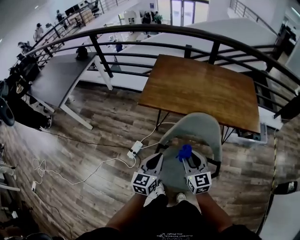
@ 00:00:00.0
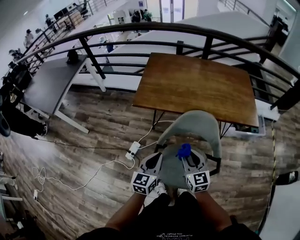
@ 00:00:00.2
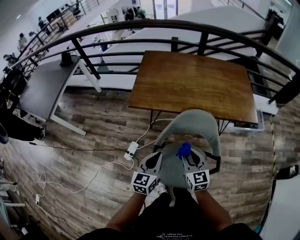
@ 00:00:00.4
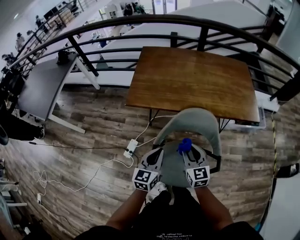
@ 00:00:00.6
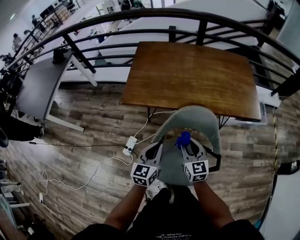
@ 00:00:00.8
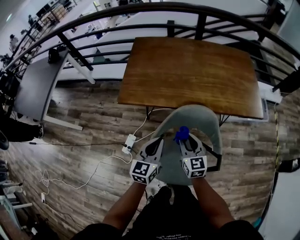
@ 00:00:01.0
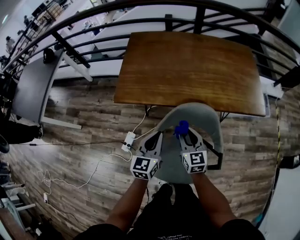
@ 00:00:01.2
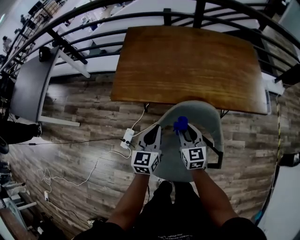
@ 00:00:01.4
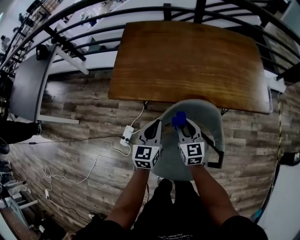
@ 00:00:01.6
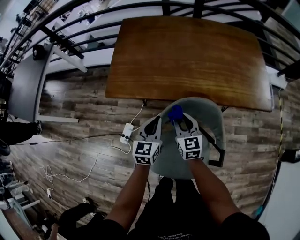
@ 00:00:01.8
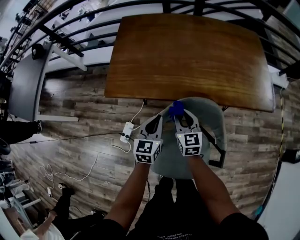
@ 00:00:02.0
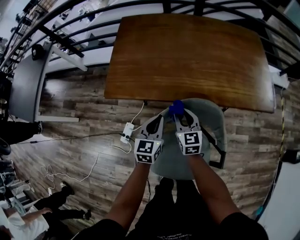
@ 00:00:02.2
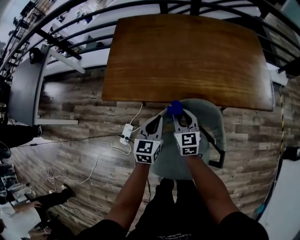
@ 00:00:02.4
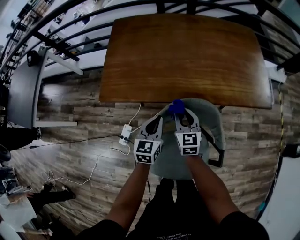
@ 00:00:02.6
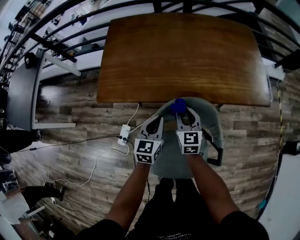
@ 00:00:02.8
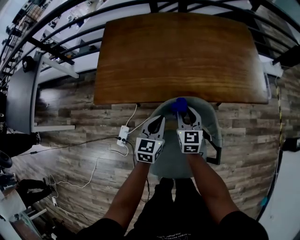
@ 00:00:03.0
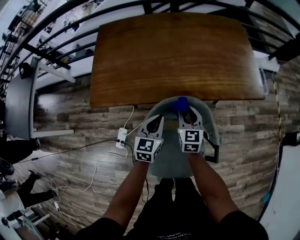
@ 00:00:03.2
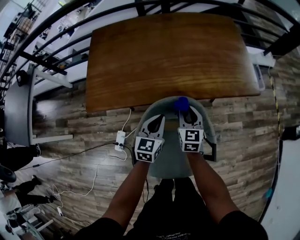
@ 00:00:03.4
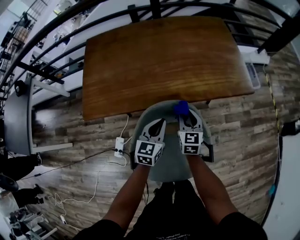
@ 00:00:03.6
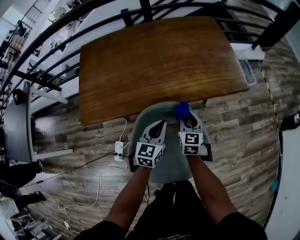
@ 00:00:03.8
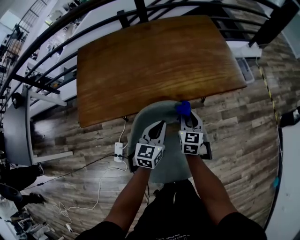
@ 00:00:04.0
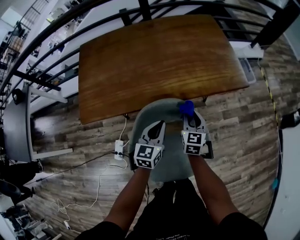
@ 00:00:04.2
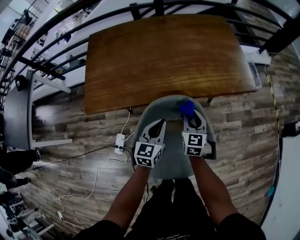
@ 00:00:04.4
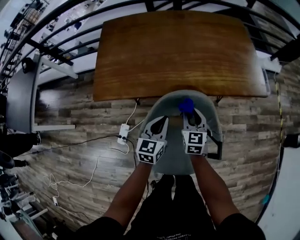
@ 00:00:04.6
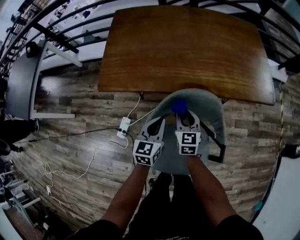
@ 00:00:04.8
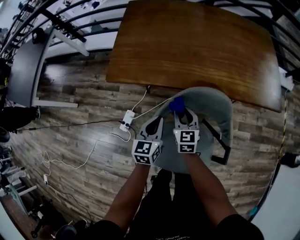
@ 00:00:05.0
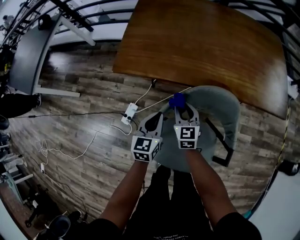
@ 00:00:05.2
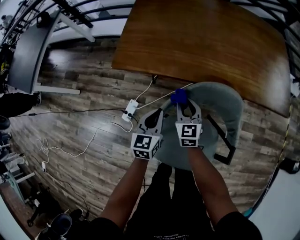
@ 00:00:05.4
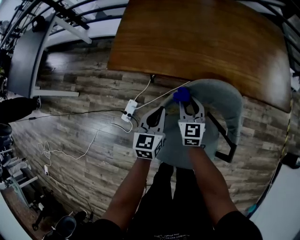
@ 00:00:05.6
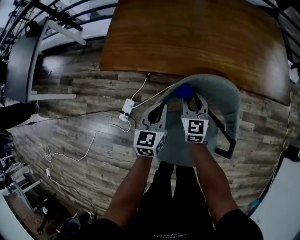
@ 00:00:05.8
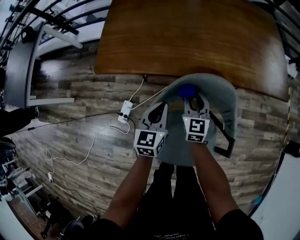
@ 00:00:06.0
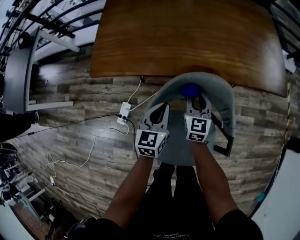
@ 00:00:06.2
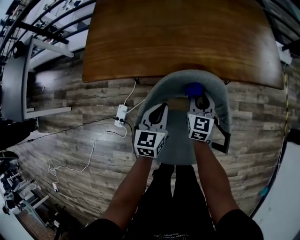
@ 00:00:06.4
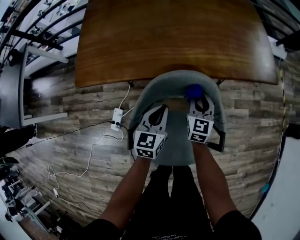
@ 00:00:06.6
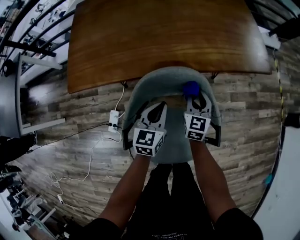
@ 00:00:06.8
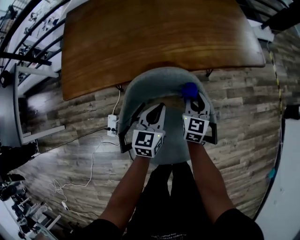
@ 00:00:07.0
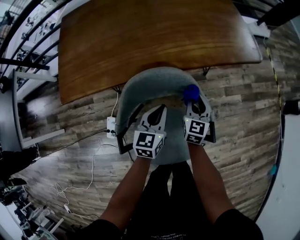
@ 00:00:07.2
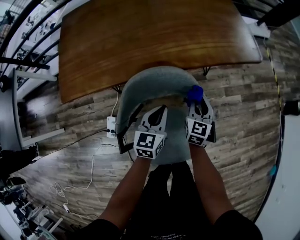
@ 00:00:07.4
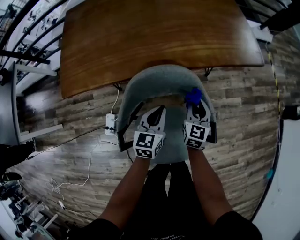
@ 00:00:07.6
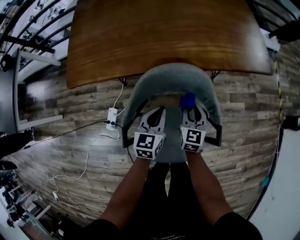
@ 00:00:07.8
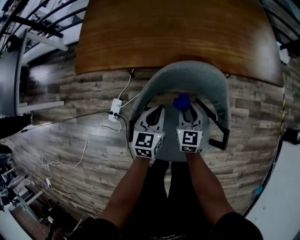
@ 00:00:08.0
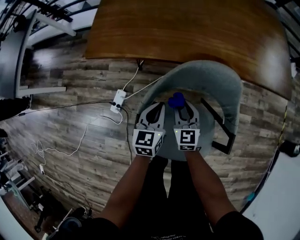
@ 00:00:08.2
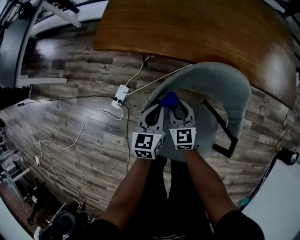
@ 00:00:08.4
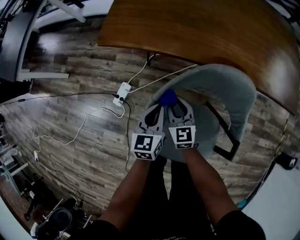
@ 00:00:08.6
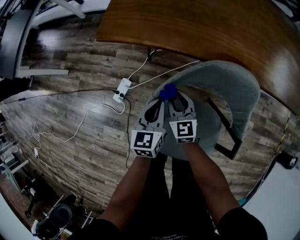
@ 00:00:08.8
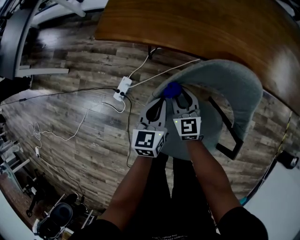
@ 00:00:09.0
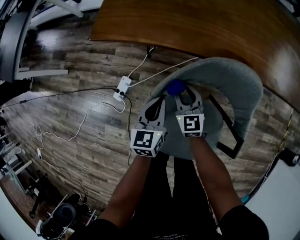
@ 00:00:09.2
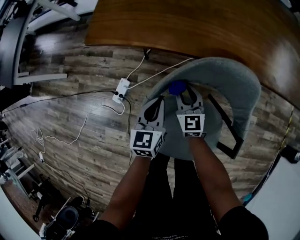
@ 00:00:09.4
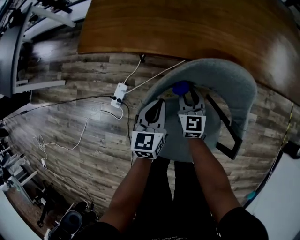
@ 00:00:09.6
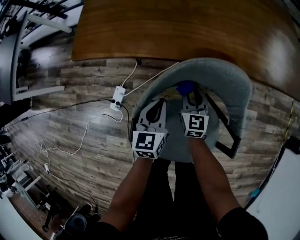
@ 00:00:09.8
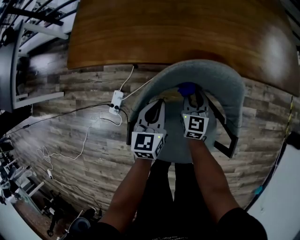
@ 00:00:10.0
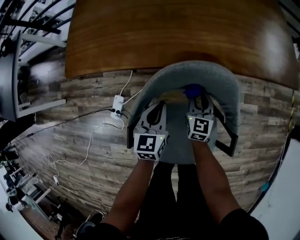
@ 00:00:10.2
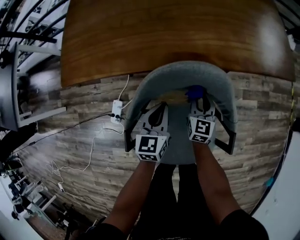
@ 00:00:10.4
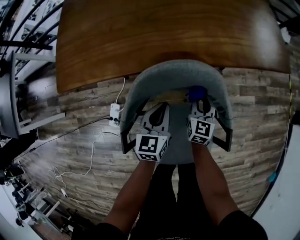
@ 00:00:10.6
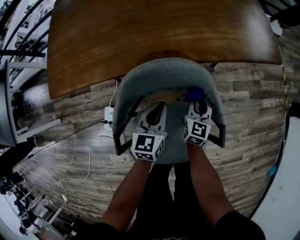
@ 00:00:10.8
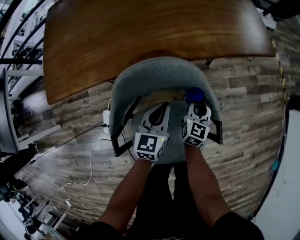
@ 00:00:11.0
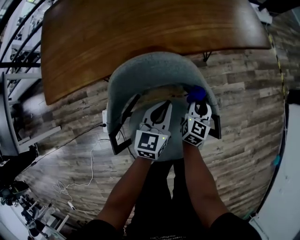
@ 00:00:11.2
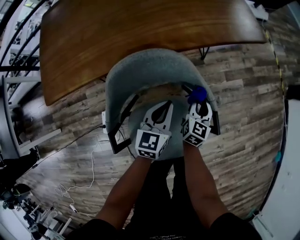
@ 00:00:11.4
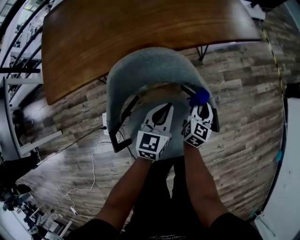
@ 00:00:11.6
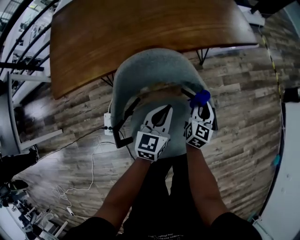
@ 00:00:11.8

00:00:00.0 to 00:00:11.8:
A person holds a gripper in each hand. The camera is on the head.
00:00:00.0 to 00:00:01.4: The left gripper heads forward, covering about 20 cm, while the right gripper shifts approximately 20 cm forward and downward.
00:00:01.4 to 00:00:03.0: The right gripper heads forward and to the right, covering roughly 10 cm; the left gripper moves downward, to the right and forward, about 10 cm.
00:00:03.0 to 00:00:04.4: The right gripper is displaced to the right by roughly 10 cm. The left gripper is displaced to the right by roughly 5 cm.
00:00:04.4 to 00:00:06.0: The left gripper ends up approximately 15 cm from where it was.
00:00:06.0 to 00:00:07.4: Both grippers travel together to the right, some 20 cm. The right gripper swivels approximately 30 degrees.
00:00:07.4 to 00:00:08.8: The right gripper changes place by about 35 cm, and rotates approximately 50 degrees, while the left gripper ends up roughly 25 cm from where it was, and swivels about 30 degrees.
00:00:08.8 to 00:00:10.4: The right gripper shifts by about 25 cm, and turns by approximately 40 degrees. Meanwhile the left gripper ends up approximately 15 cm from where it was.
00:00:10.4 to 00:00:11.8: The left gripper ends up some 15 cm from where it was, and changes its angle by roughly 20 degrees, while the right gripper changes place by some 20 cm, and turns by roughly 30 degrees.

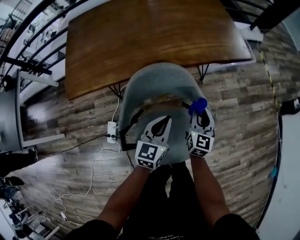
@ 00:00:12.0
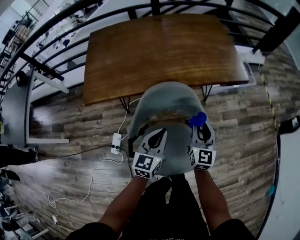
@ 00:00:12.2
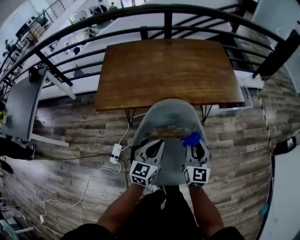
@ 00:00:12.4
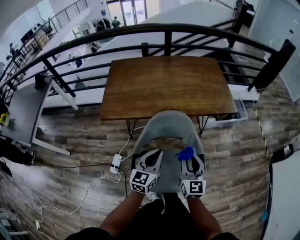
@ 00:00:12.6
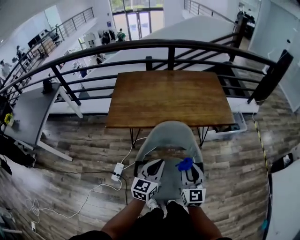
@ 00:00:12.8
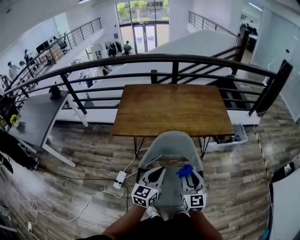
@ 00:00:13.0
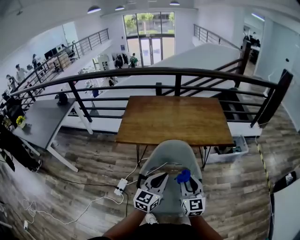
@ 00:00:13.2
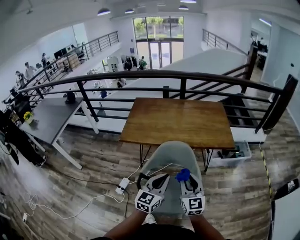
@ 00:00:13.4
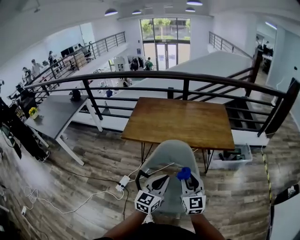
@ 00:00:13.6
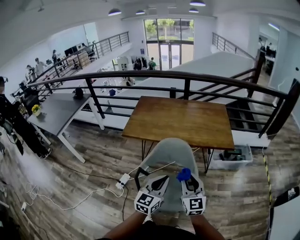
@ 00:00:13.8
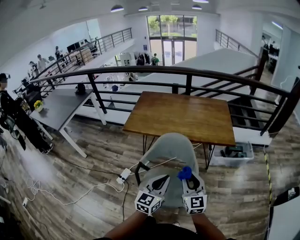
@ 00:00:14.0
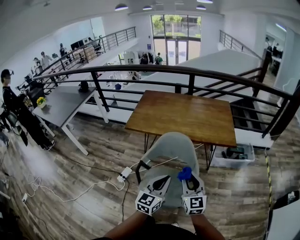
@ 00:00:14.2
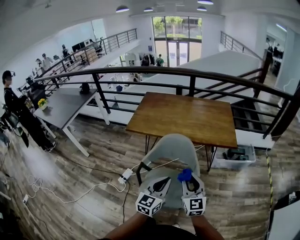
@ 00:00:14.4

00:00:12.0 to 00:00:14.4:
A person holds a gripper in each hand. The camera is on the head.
00:00:12.0 to 00:00:13.2: Both grippers travel together upward and backward, about 30 cm. The right gripper rotates roughly 40 degrees.
00:00:13.2 to 00:00:14.4: The left gripper moves backward and to the right, some 10 cm; the right gripper heads to the right and backward, covering roughly 10 cm.

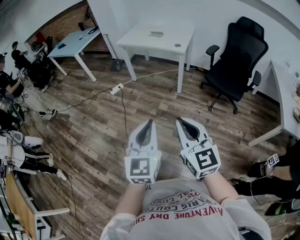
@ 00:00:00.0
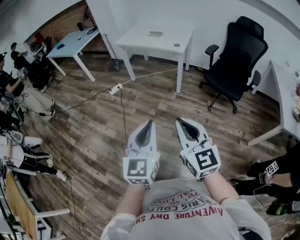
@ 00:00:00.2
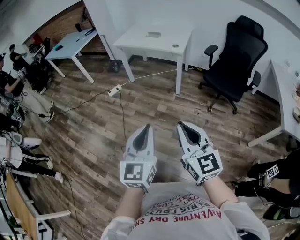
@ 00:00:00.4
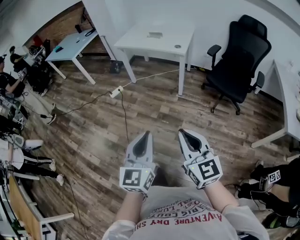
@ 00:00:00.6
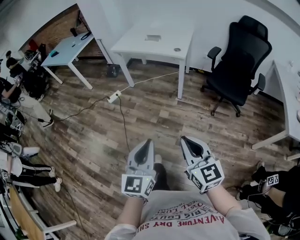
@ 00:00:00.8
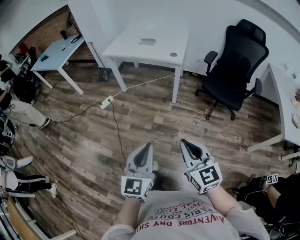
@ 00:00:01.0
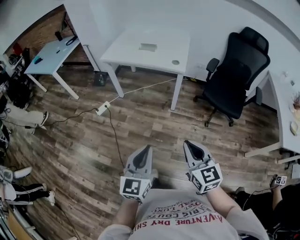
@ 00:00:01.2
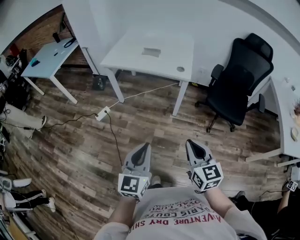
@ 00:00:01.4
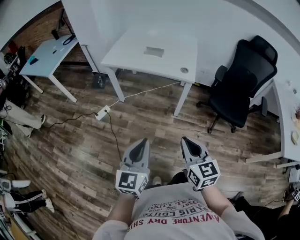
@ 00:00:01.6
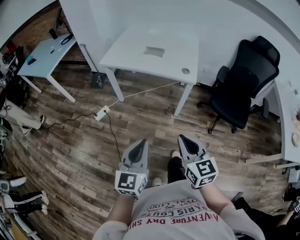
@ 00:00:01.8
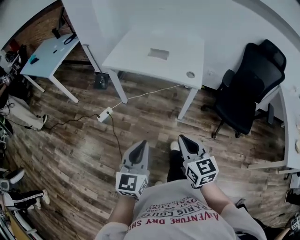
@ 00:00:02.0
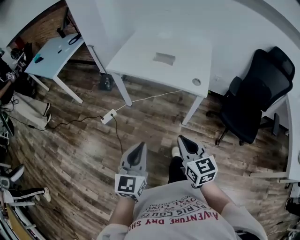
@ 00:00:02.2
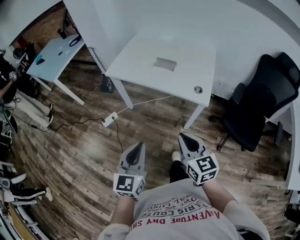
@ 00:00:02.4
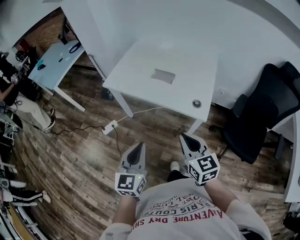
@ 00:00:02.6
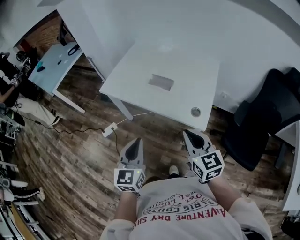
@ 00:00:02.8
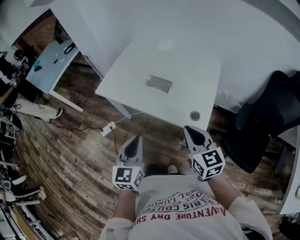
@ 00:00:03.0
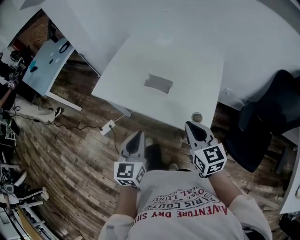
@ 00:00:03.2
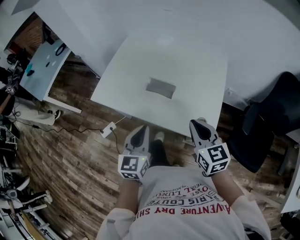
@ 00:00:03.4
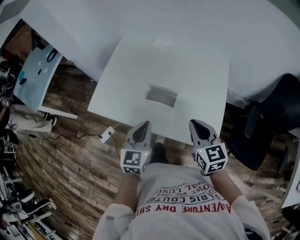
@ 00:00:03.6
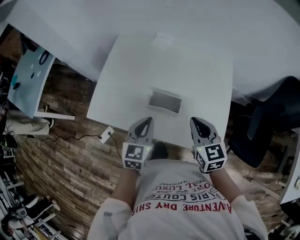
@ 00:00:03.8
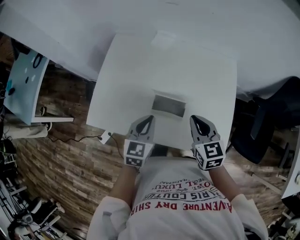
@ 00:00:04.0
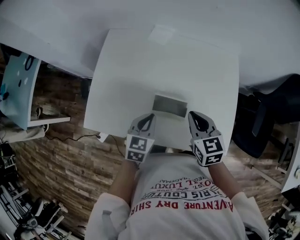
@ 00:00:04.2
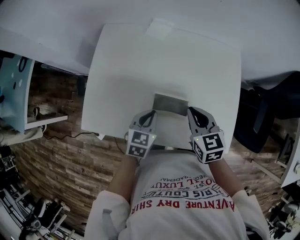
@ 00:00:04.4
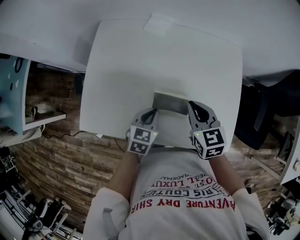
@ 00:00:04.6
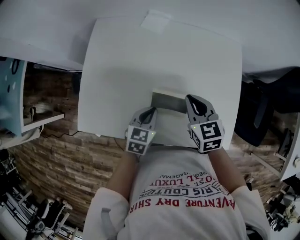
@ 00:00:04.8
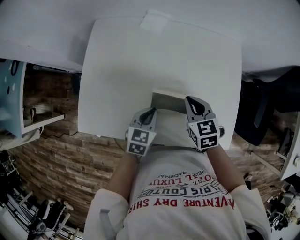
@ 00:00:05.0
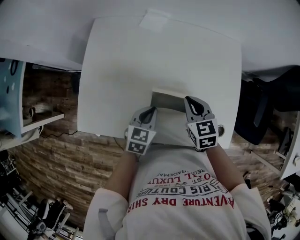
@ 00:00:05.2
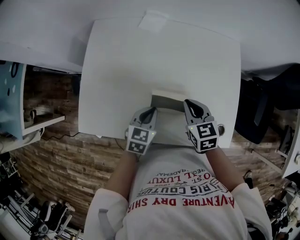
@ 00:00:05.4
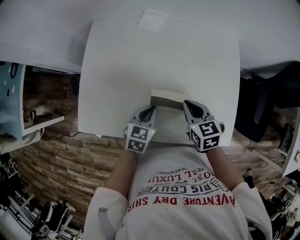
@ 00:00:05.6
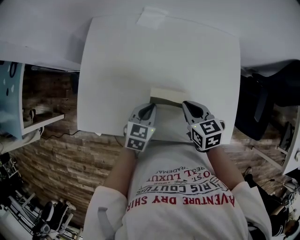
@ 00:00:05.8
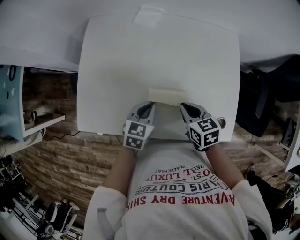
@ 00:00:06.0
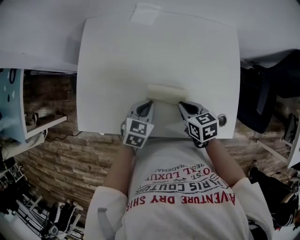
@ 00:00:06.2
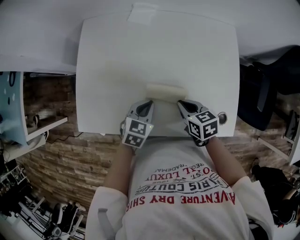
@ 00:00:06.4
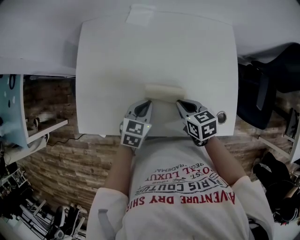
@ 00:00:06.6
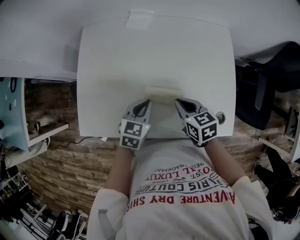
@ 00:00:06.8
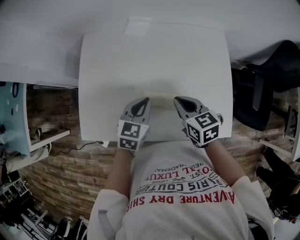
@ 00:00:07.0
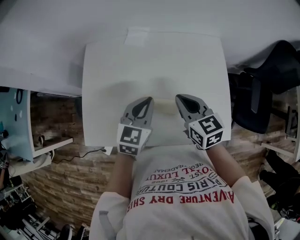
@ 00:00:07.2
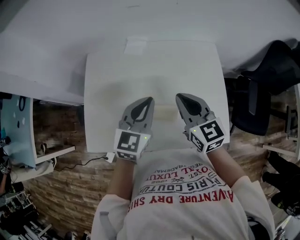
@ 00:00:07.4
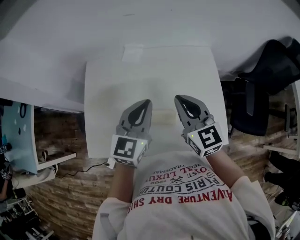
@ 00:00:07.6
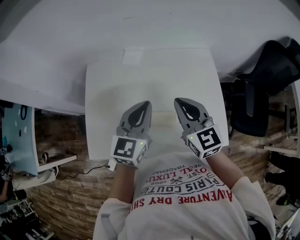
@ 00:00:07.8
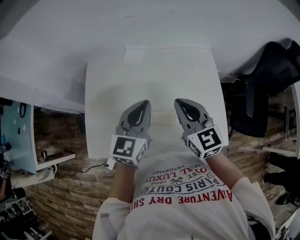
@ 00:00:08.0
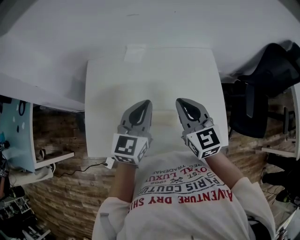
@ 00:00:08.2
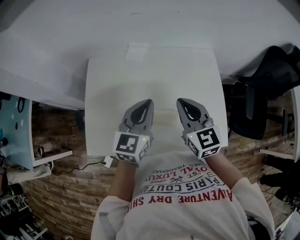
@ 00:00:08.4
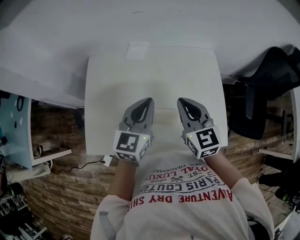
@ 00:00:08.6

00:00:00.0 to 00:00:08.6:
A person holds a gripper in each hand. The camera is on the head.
00:00:00.0 to 00:00:01.4: The grippers both shift forward by about 35 cm. The right gripper changes its angle by roughly 20 degrees.
00:00:01.4 to 00:00:02.8: Both grippers move forward, roughly 40 cm.
00:00:02.8 to 00:00:04.4: The right gripper heads forward, covering approximately 35 cm, and swivels approximately 20 degrees. Meanwhile the left gripper heads forward and downward, covering some 50 cm, and turns by roughly 40 degrees.
00:00:04.4 to 00:00:05.8: The right gripper shifts approximately 5 cm downward.
00:00:05.8 to 00:00:07.2: Both grippers move upward, approximately 10 cm.
00:00:07.2 to 00:00:08.6: Both grippers travel together upward, roughly 5 cm.
